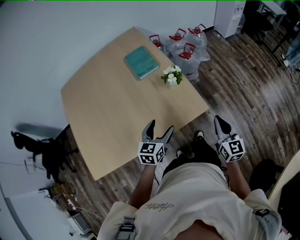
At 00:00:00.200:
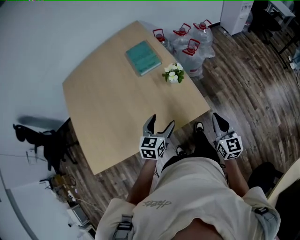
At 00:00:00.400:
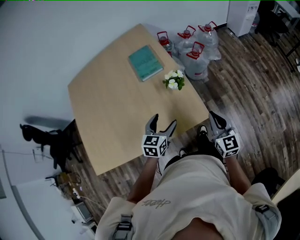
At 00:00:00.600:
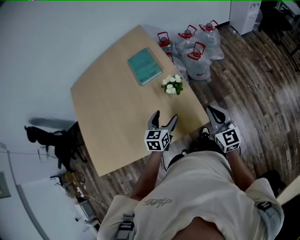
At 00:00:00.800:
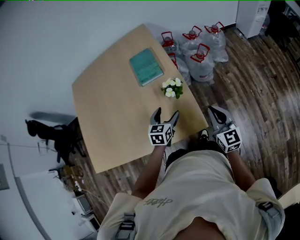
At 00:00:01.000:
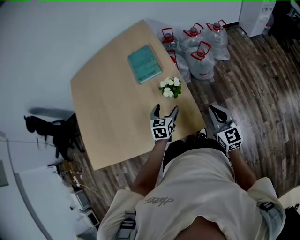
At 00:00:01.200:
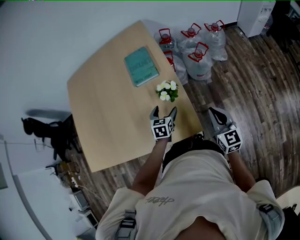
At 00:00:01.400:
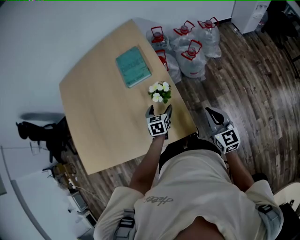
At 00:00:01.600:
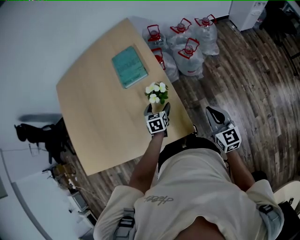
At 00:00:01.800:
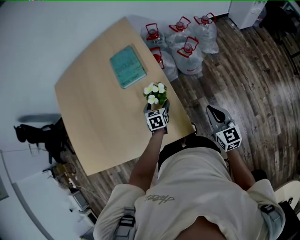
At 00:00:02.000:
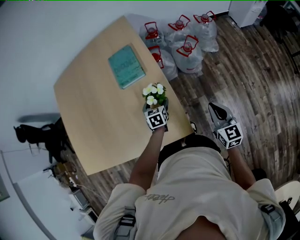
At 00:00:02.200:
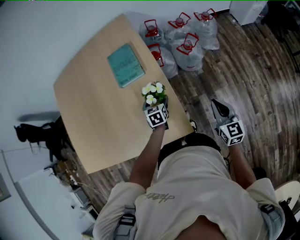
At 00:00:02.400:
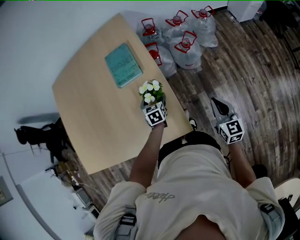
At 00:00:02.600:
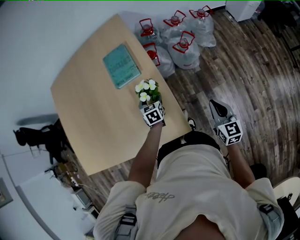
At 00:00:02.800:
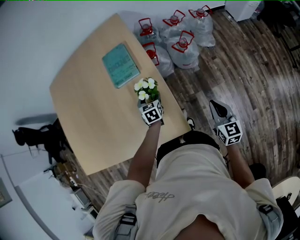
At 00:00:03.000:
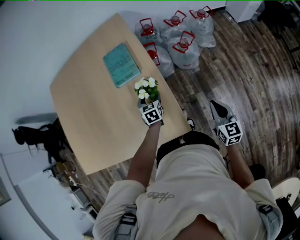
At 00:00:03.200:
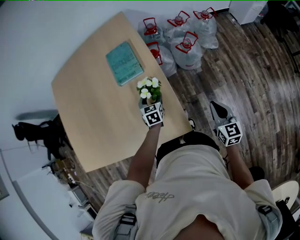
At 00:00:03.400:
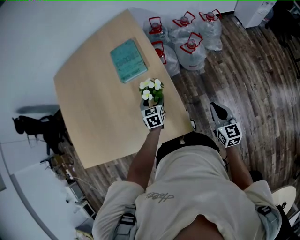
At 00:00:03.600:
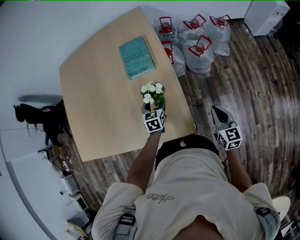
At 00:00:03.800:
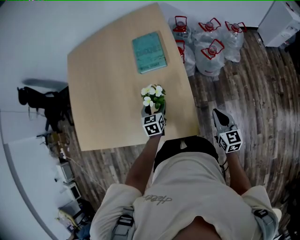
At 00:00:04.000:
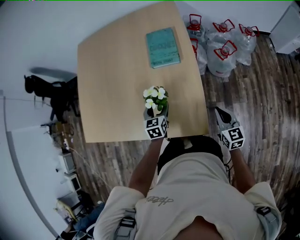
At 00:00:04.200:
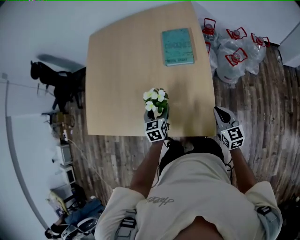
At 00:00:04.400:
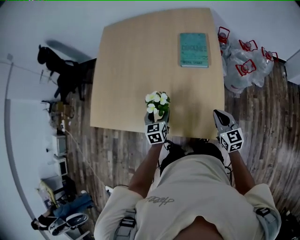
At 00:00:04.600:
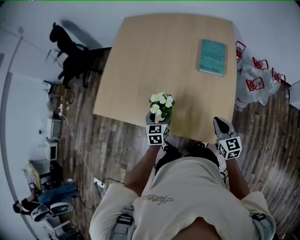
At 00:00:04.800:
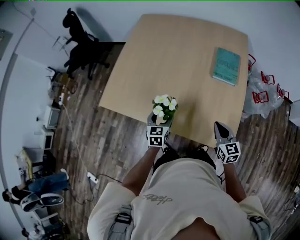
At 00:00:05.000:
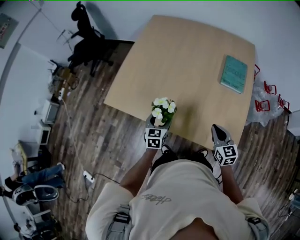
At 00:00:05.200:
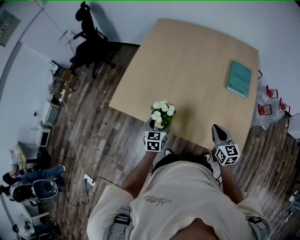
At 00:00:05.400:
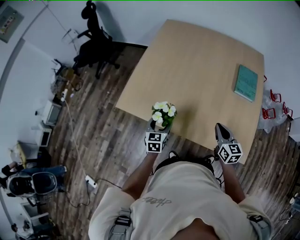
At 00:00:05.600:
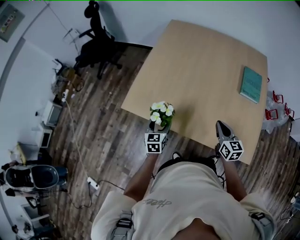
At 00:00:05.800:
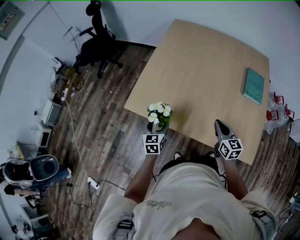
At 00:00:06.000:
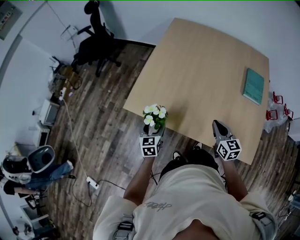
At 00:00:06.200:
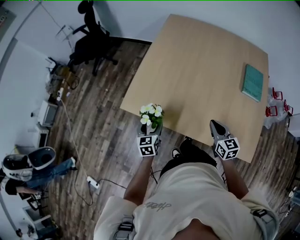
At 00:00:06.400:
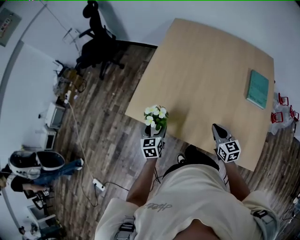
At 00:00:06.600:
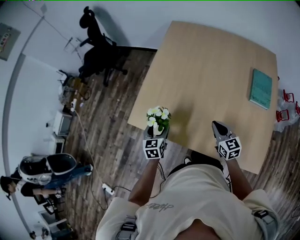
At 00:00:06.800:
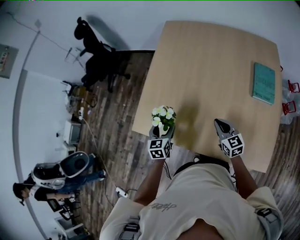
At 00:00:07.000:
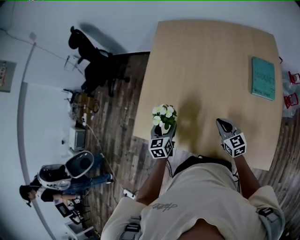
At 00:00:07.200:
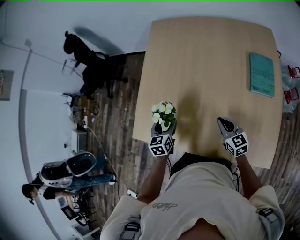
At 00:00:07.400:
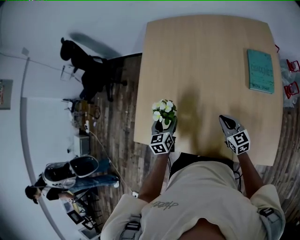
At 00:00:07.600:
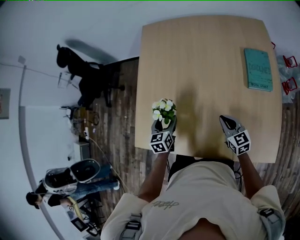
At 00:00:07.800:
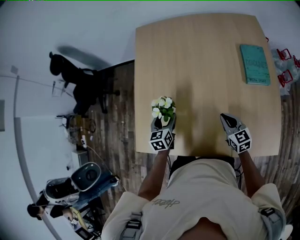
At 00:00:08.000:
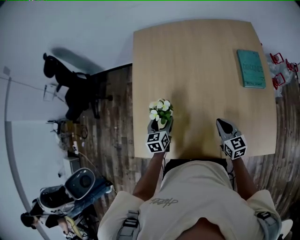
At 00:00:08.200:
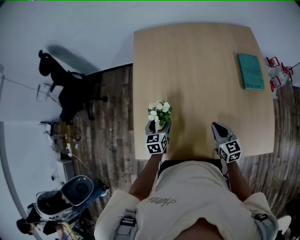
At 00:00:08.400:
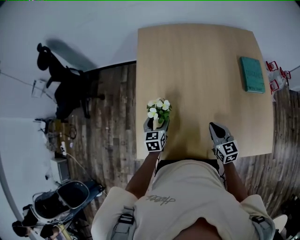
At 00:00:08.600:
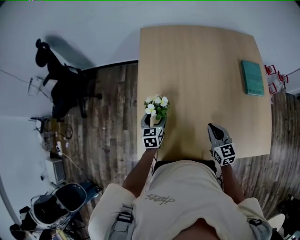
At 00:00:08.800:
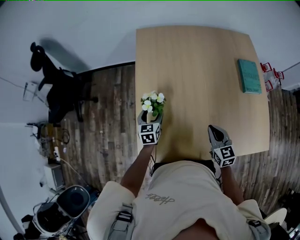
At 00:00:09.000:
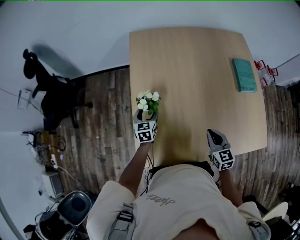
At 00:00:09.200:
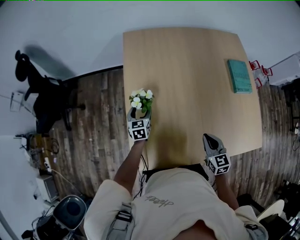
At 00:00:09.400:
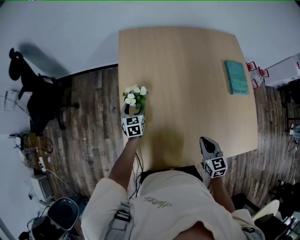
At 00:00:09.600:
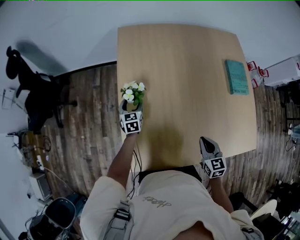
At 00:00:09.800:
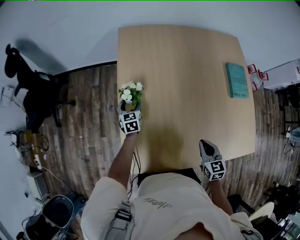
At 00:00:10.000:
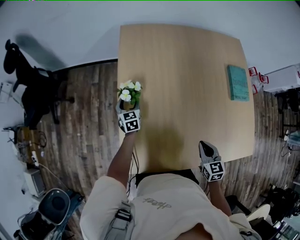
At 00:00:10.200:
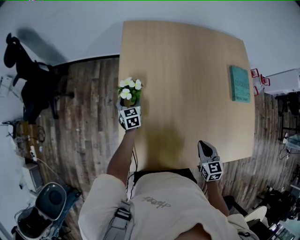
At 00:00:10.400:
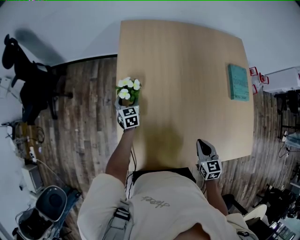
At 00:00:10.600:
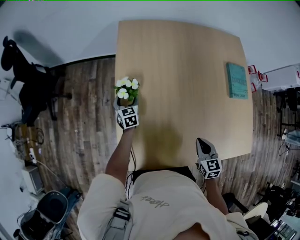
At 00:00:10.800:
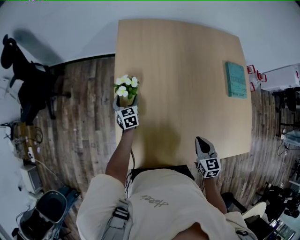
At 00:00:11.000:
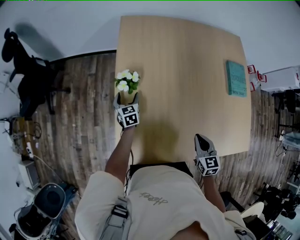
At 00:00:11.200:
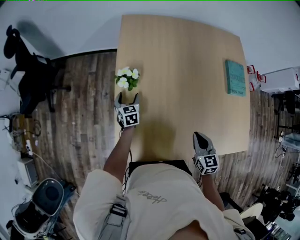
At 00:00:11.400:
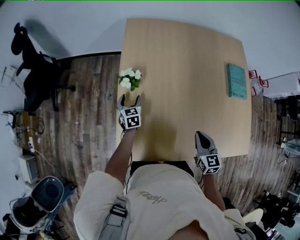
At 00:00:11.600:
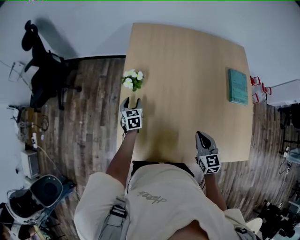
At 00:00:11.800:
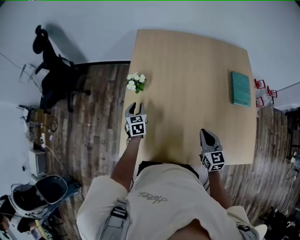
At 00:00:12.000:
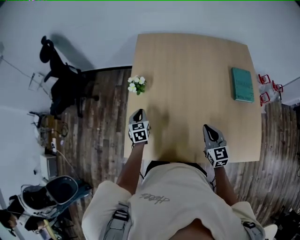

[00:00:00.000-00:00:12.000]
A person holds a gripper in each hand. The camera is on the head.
00:00:00.000 to 00:00:01.600: The right gripper is displaced forward and to the right by approximately 20 cm. Meanwhile the left gripper moves forward, downward and to the right, approximately 30 cm, and changes its angle by approximately 30 degrees.
00:00:01.600 to 00:00:03.000: The left gripper heads forward, covering some 5 cm. The right gripper travels to the right by some 5 cm.
00:00:03.000 to 00:00:04.400: The right gripper heads to the left, covering about 20 cm, and turns by approximately 30 degrees. Meanwhile the left gripper shifts some 25 cm to the left and backward, and changes its angle by about 20 degrees.
00:00:04.400 to 00:00:06.000: Both grippers move to the left, about 35 cm.
00:00:06.000 to 00:00:07.600: The left gripper travels forward and to the right by roughly 20 cm. Meanwhile the right gripper is displaced forward, to the right and downward by about 15 cm.
00:00:07.600 to 00:00:09.000: The left gripper is displaced forward and to the left by roughly 20 cm; the right gripper is displaced to the left by approximately 15 cm, and swivels about 20 degrees.
00:00:09.000 to 00:00:10.400: The left gripper heads forward and downward, covering some 10 cm.
00:00:10.400 to 00:00:12.000: The right gripper shifts some 10 cm upward, and changes its angle by approximately 20 degrees. The left gripper travels backward and upward by some 15 cm, and closes its fingers.

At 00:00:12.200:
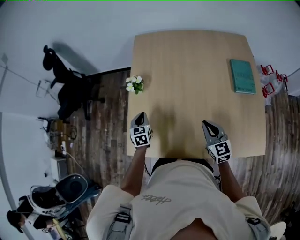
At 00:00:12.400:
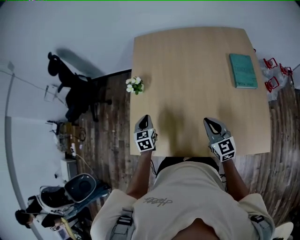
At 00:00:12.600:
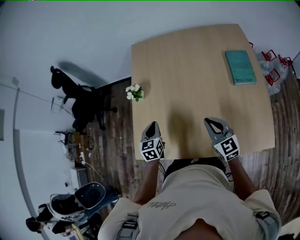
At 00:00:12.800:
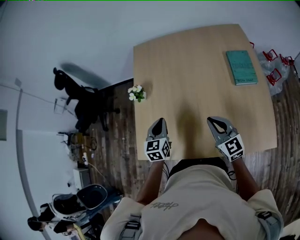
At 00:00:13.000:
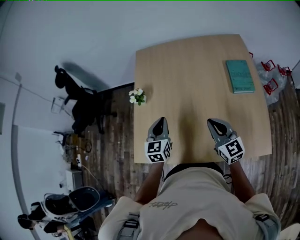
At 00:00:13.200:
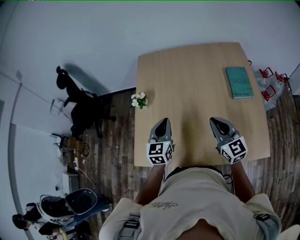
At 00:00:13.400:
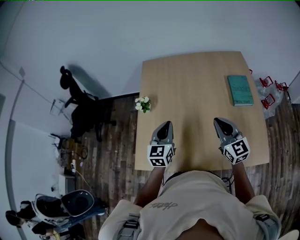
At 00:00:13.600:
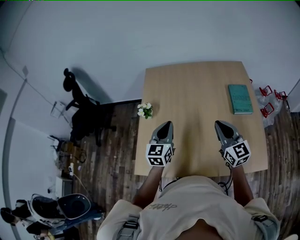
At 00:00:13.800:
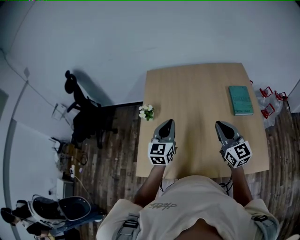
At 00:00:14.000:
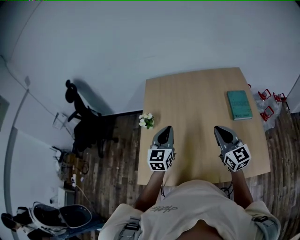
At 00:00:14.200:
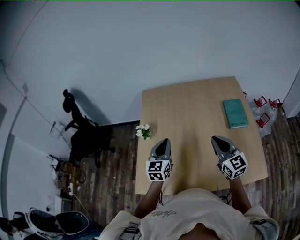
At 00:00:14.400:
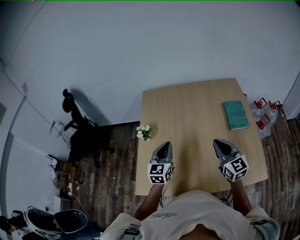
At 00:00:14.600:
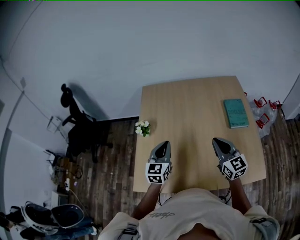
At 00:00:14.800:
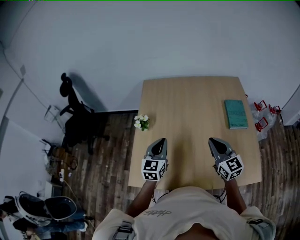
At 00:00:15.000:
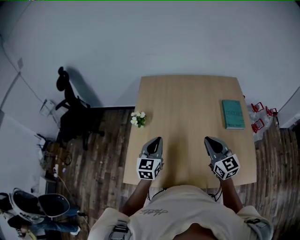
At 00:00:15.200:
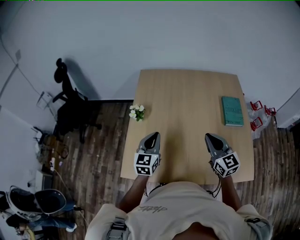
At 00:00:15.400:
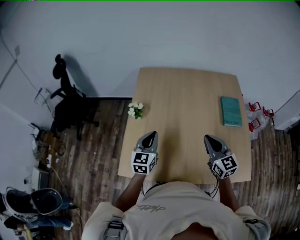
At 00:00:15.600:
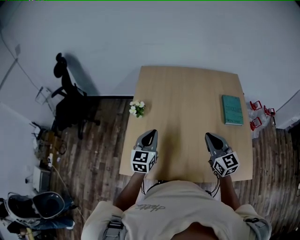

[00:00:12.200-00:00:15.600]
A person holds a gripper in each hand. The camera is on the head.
00:00:12.200 to 00:00:13.800: The left gripper travels upward and to the right by some 25 cm, and turns by some 30 degrees; the right gripper heads upward, covering roughly 15 cm.
00:00:13.800 to 00:00:15.600: The left gripper shifts some 5 cm to the left and downward.
